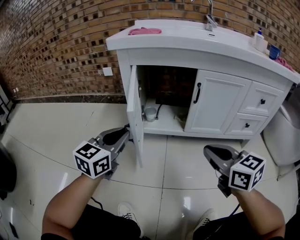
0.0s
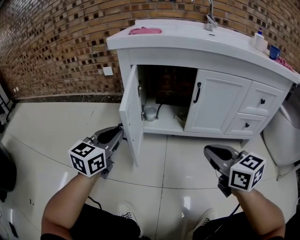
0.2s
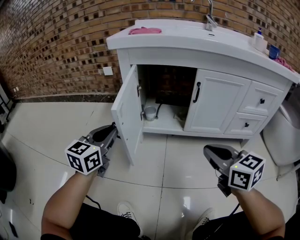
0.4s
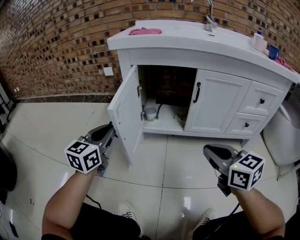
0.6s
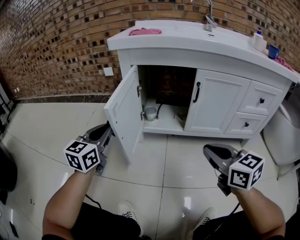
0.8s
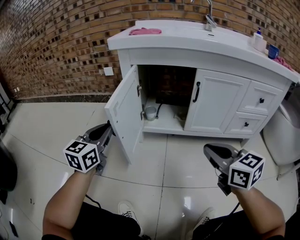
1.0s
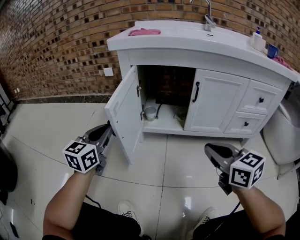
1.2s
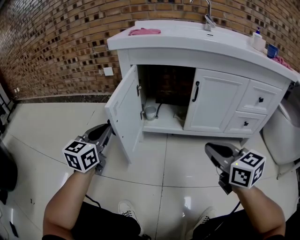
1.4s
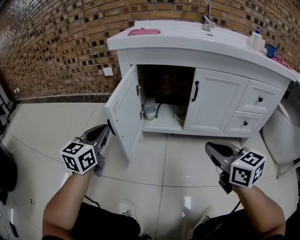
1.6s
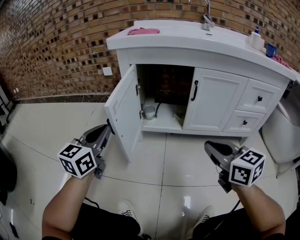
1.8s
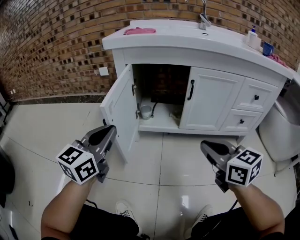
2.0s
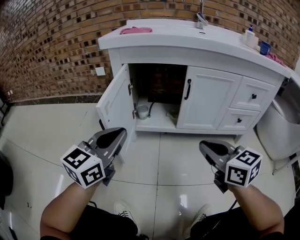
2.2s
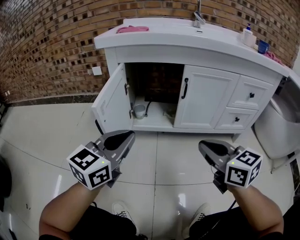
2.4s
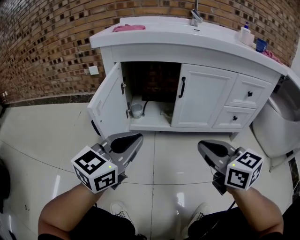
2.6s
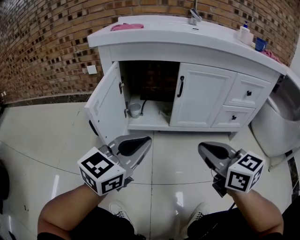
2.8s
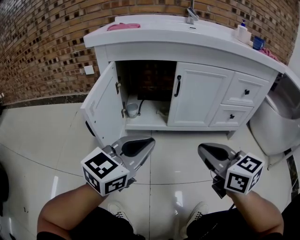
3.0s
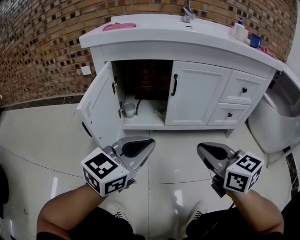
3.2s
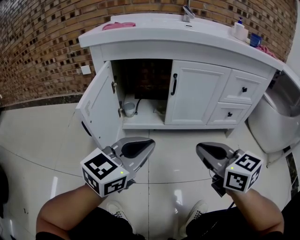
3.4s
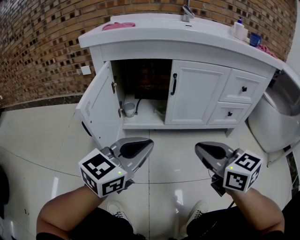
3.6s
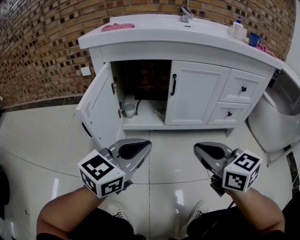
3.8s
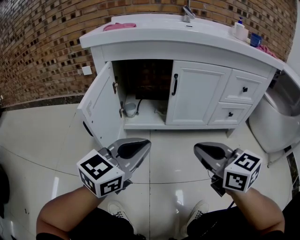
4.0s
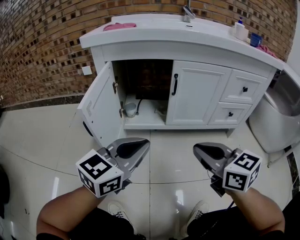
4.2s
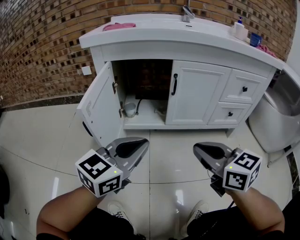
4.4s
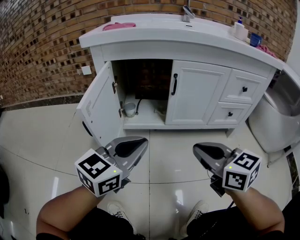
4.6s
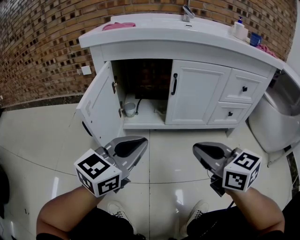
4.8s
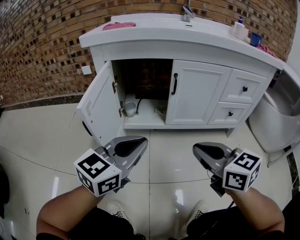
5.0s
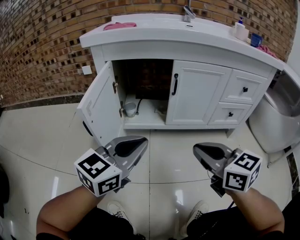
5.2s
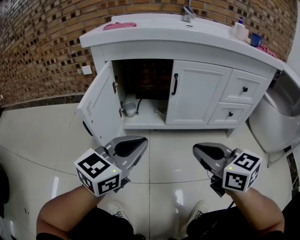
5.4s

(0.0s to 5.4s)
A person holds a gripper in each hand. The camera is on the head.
0.0s - 1.4s: The left gripper heads to the left, covering some 5 cm.
1.4s - 2.8s: The left gripper goes about 20 cm to the right, and swivels roughly 30 degrees.
2.8s - 4.0s: The grippers move only a little.
4.0s - 5.4s: The two grippers keep their place.

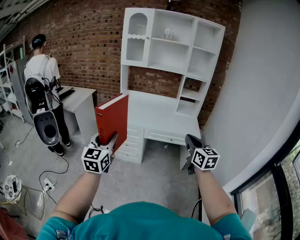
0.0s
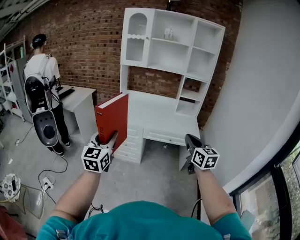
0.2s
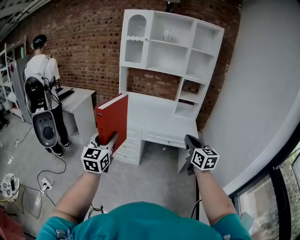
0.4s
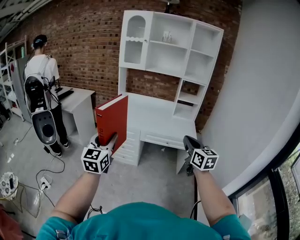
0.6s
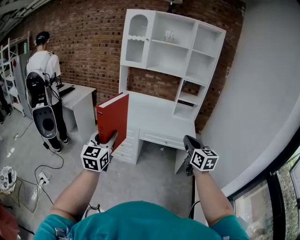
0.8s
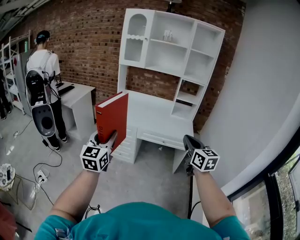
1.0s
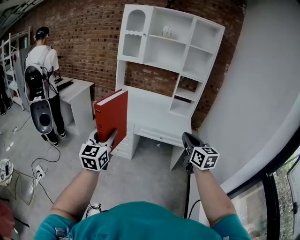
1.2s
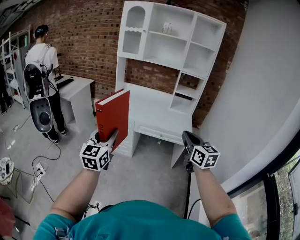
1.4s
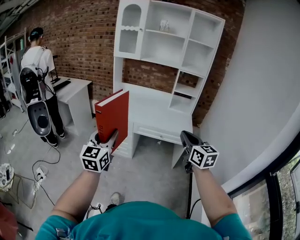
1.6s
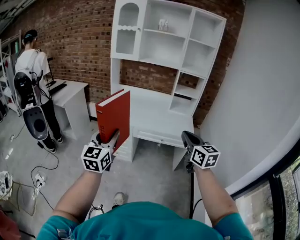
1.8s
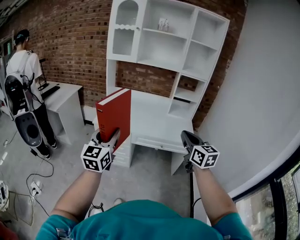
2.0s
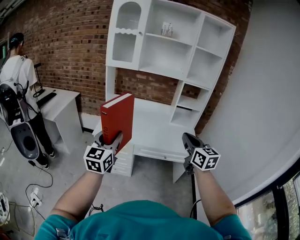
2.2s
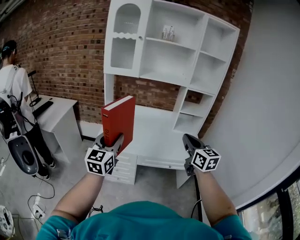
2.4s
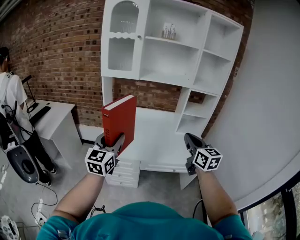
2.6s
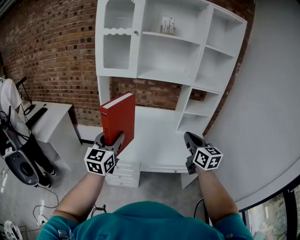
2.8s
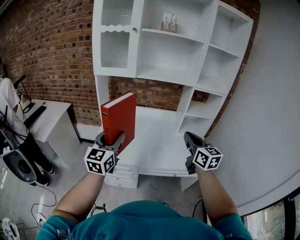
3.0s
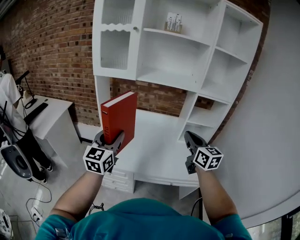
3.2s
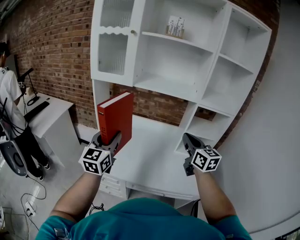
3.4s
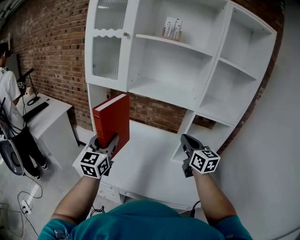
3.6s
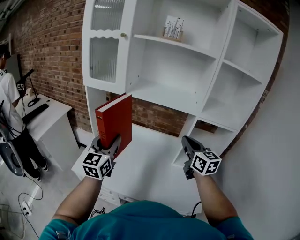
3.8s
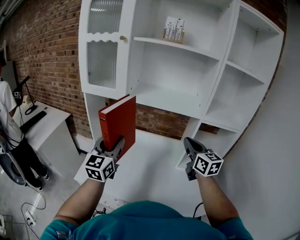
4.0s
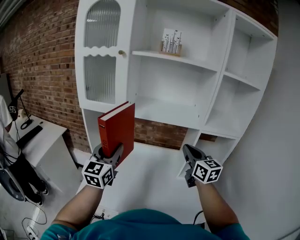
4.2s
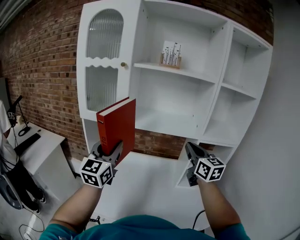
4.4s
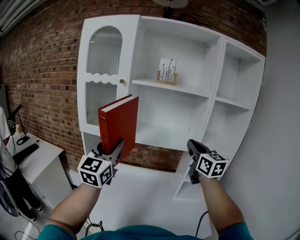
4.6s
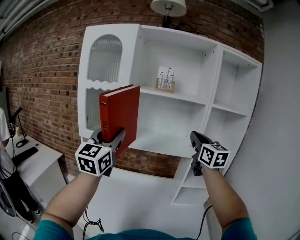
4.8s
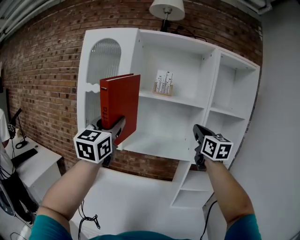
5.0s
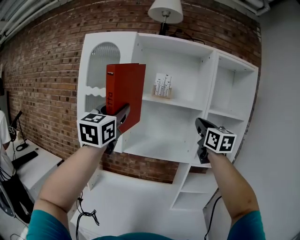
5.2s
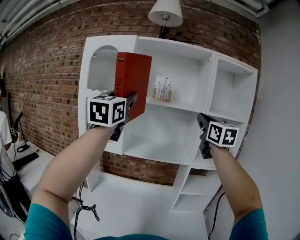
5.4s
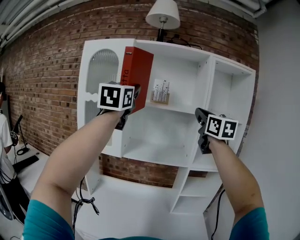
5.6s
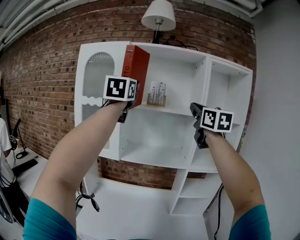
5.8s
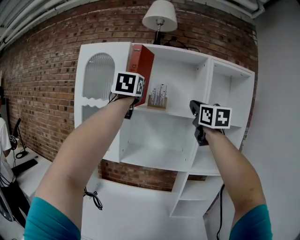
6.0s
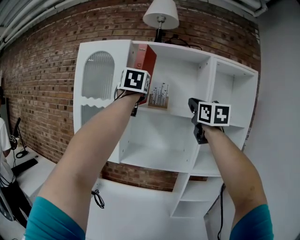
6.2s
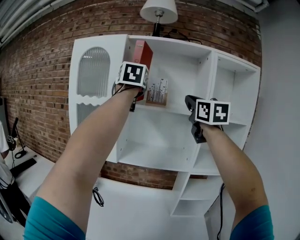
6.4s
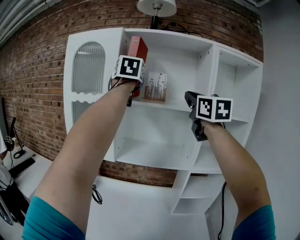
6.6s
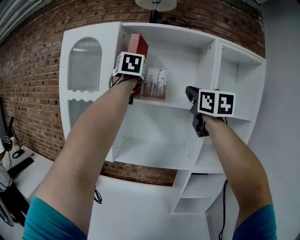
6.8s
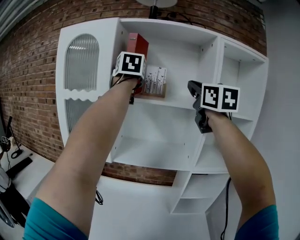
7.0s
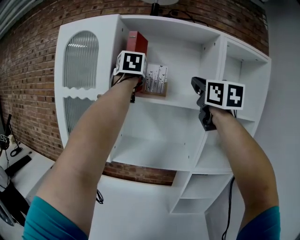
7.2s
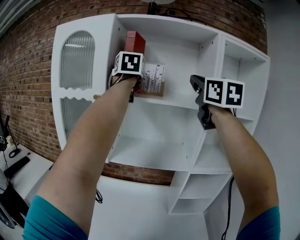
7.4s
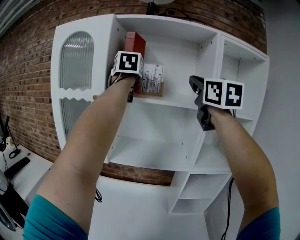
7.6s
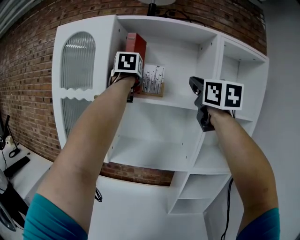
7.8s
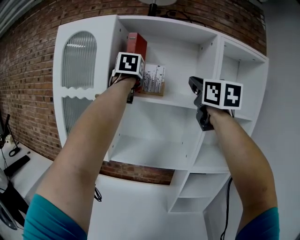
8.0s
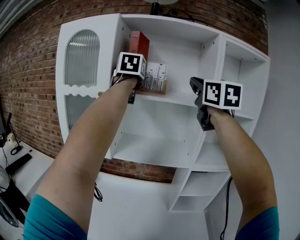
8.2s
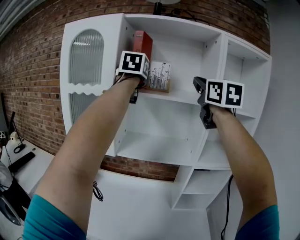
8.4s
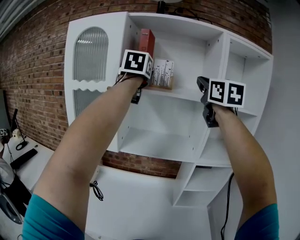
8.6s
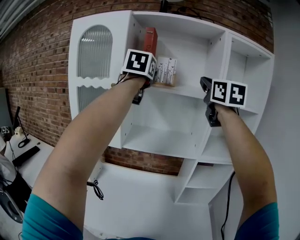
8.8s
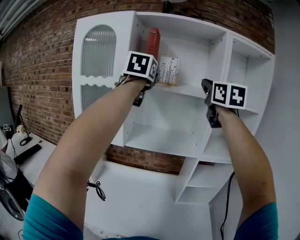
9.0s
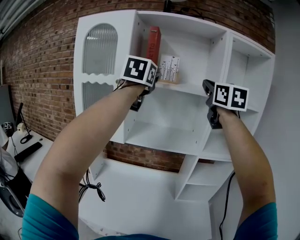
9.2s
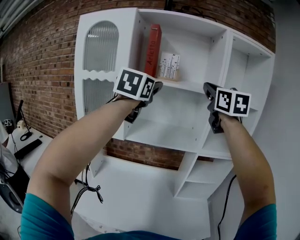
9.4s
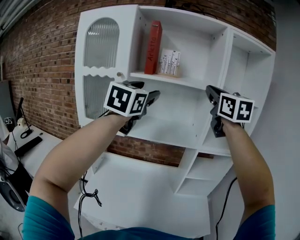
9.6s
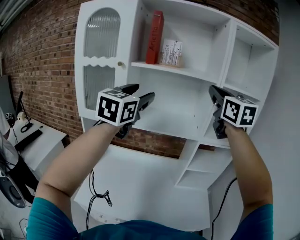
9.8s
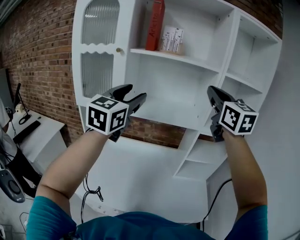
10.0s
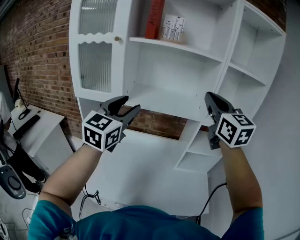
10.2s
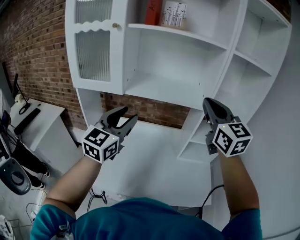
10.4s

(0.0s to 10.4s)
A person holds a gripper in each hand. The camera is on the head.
0.0s - 1.4s: Both grippers travel together to the right, about 10 cm.
1.4s - 3.0s: Both grippers are carried forward, some 50 cm.
3.0s - 4.4s: The right gripper is displaced forward by roughly 25 cm, while the left gripper shifts about 25 cm forward and upward.
4.4s - 6.0s: The two grippers go roughly 35 cm upward.
6.0s - 7.4s: The left gripper goes roughly 15 cm forward. Meanwhile the right gripper shifts about 5 cm forward.
7.4s - 9.0s: The left gripper heads backward, covering roughly 10 cm, and opens up.
9.0s - 10.4s: The two grippers go about 35 cm downward and backward.

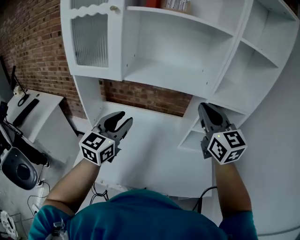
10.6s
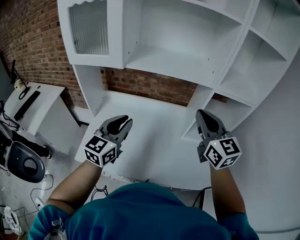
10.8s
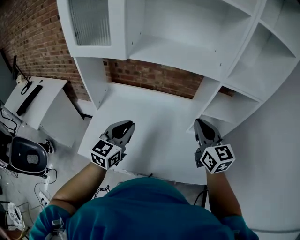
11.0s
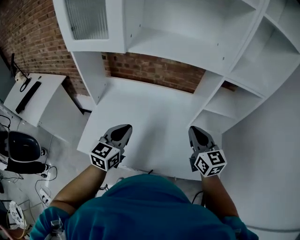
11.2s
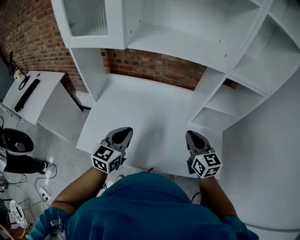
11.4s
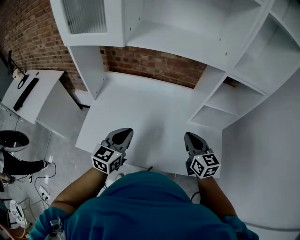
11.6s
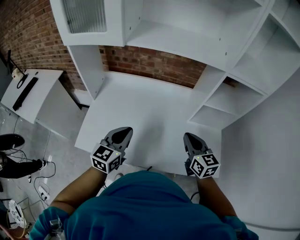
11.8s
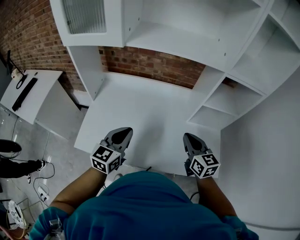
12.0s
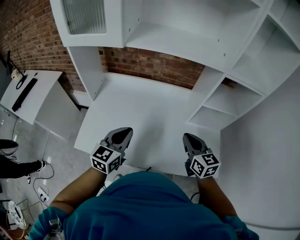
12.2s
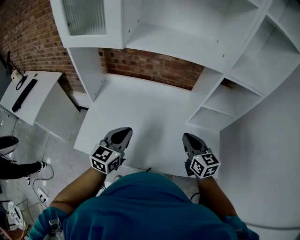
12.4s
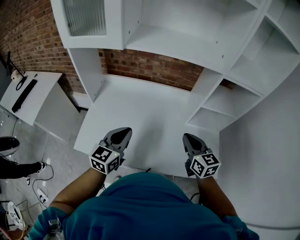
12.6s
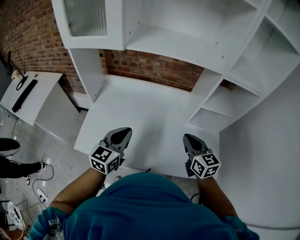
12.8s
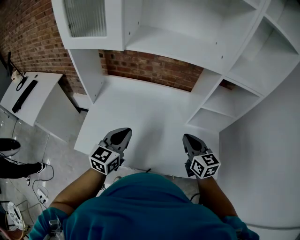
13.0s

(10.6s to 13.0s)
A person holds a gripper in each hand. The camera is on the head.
10.6s - 11.8s: The left gripper heads downward, covering roughly 20 cm, and closes its fingers. Meanwhile the right gripper moves downward, some 30 cm, and changes its angle by roughly 30 degrees.
11.8s - 13.0s: There are only small adjustments of the grippers.

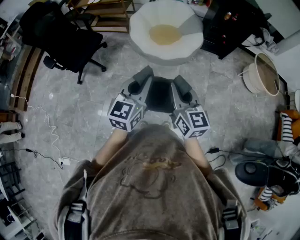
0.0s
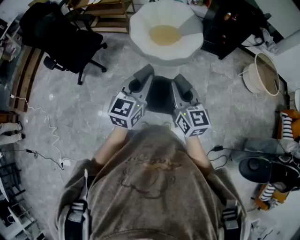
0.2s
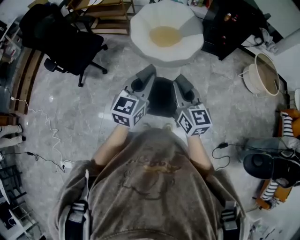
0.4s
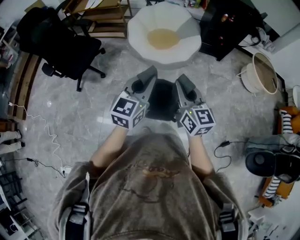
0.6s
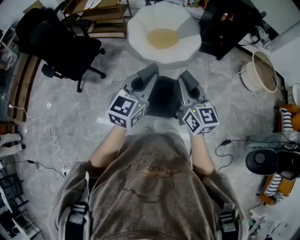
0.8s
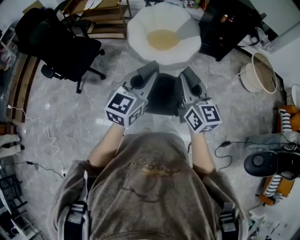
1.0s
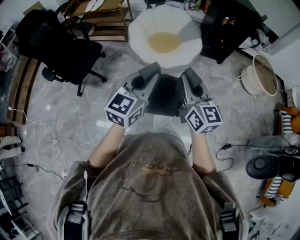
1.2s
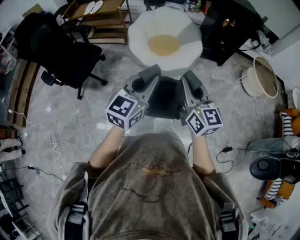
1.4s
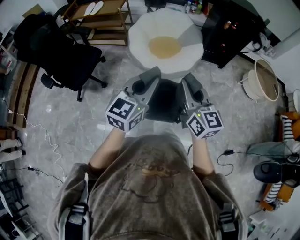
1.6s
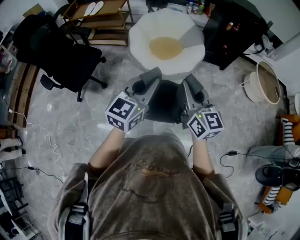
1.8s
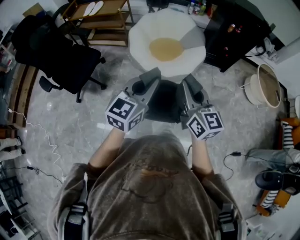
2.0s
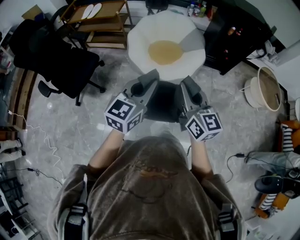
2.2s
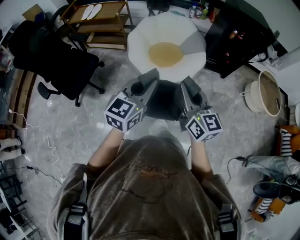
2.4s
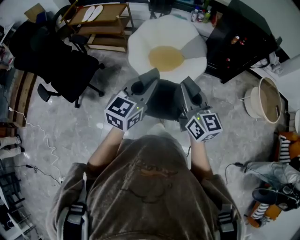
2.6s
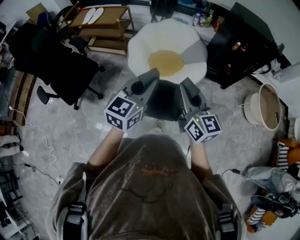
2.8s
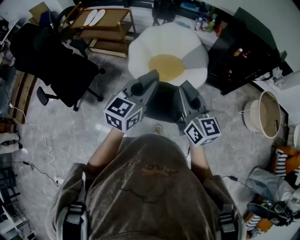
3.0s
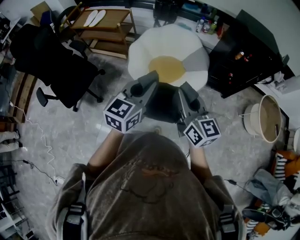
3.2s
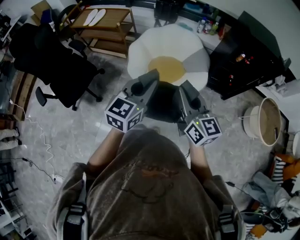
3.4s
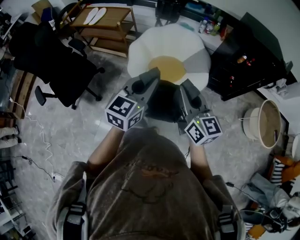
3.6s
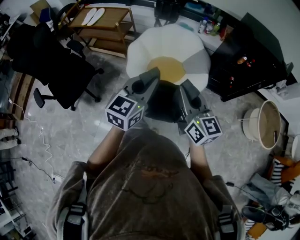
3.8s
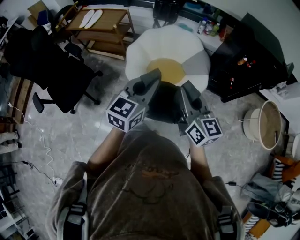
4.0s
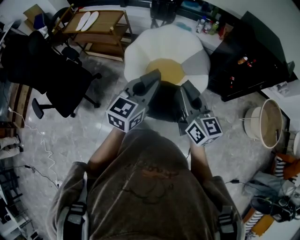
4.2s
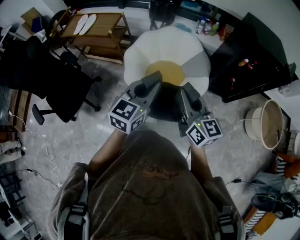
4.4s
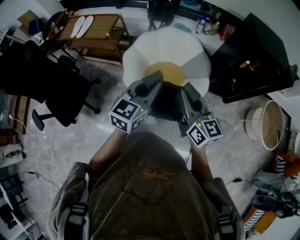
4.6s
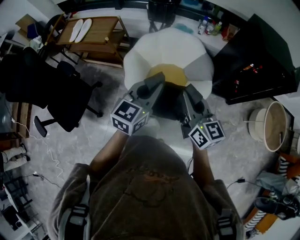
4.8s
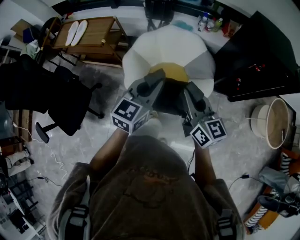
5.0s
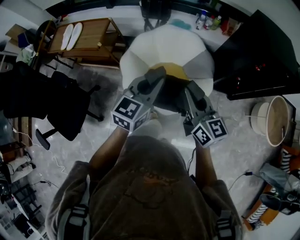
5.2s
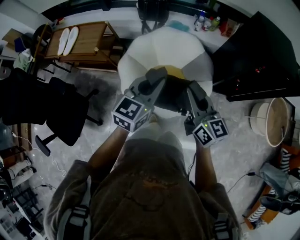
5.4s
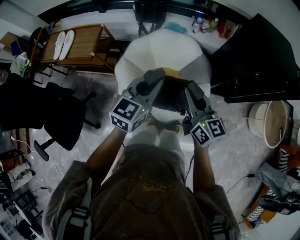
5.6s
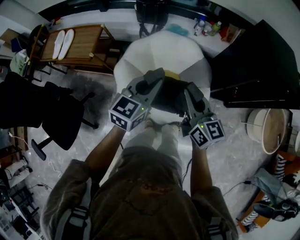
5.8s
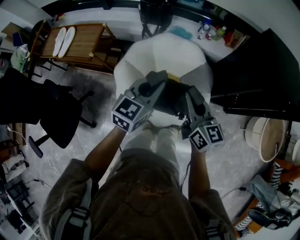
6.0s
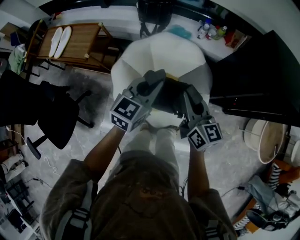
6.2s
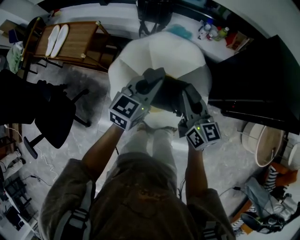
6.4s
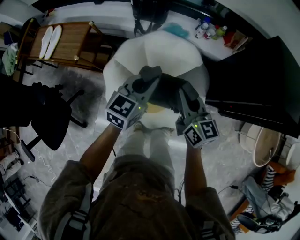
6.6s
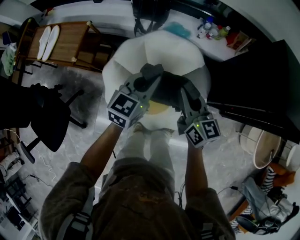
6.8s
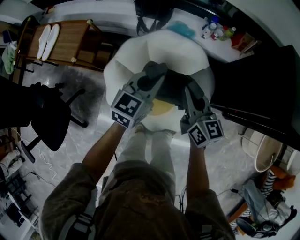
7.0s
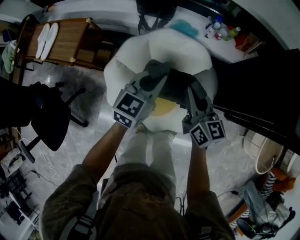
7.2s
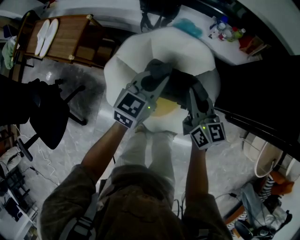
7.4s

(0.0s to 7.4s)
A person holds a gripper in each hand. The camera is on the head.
0.0s - 1.4s: The two grippers go about 5 cm forward.
1.4s - 3.0s: The grippers both shift forward by approximately 25 cm.
3.0s - 4.4s: Both grippers travel together forward, approximately 15 cm.
4.4s - 6.0s: Both grippers travel together forward, about 25 cm.
6.0s - 7.4s: The grippers both shift forward and downward by roughly 20 cm.
